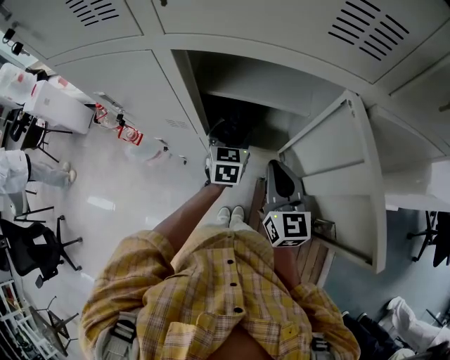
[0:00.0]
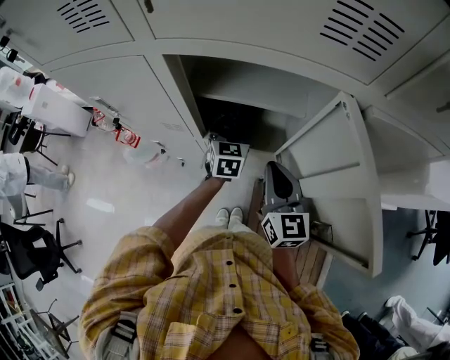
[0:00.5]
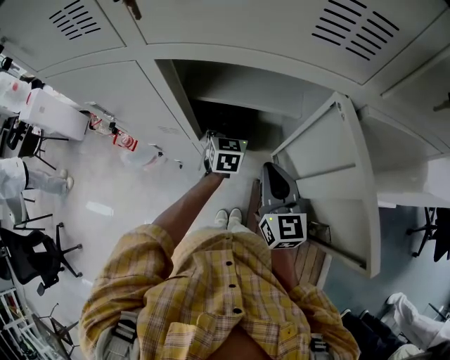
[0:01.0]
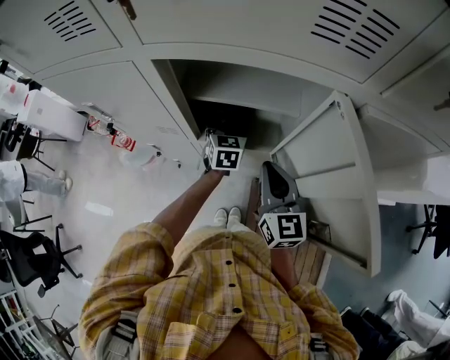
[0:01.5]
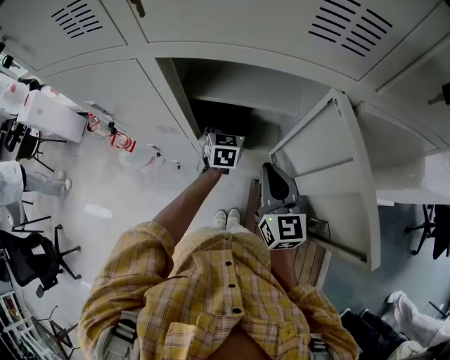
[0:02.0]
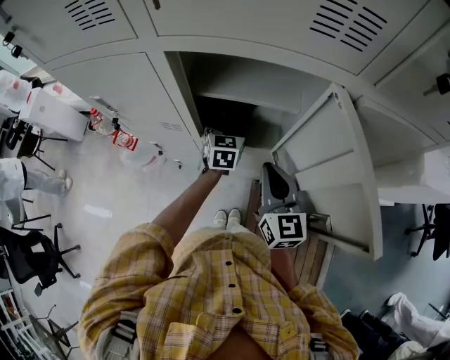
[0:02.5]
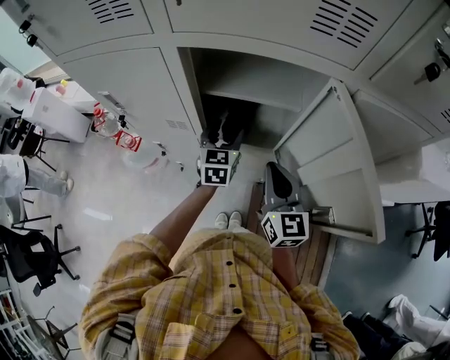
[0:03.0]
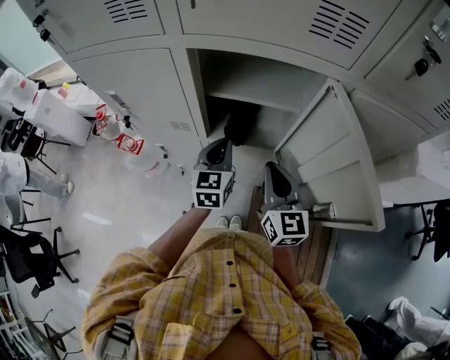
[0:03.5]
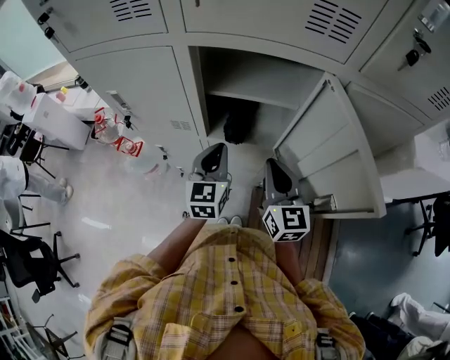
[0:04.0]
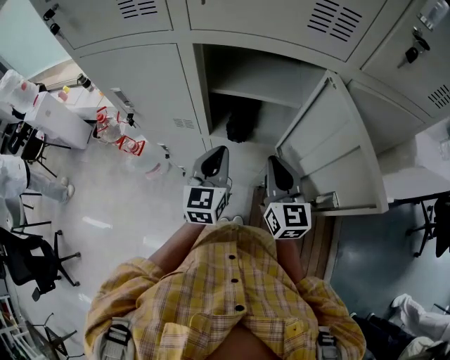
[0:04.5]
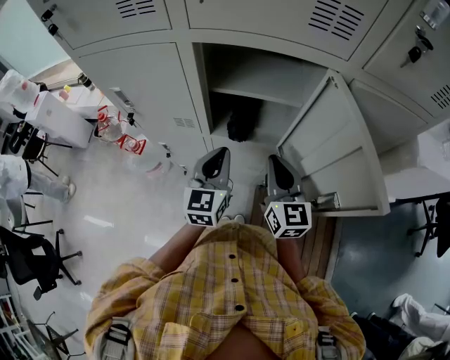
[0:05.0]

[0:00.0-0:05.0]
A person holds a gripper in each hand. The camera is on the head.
0:02.5 to 0:05.0: The left gripper shifts some 20 cm backward and upward, and closes its fingers.

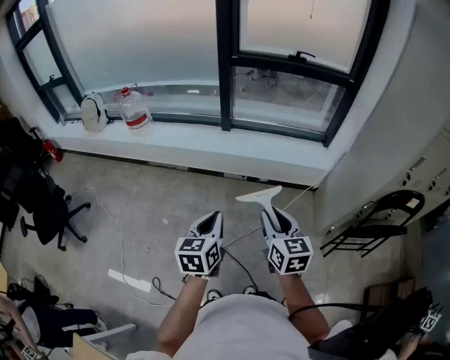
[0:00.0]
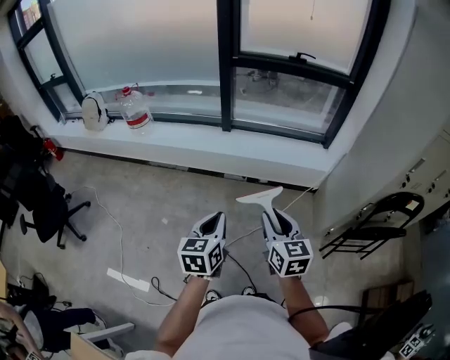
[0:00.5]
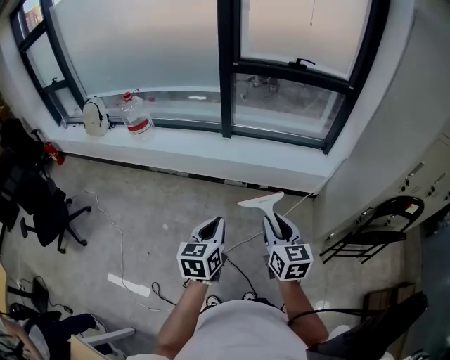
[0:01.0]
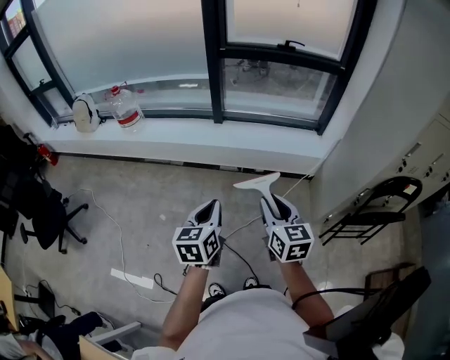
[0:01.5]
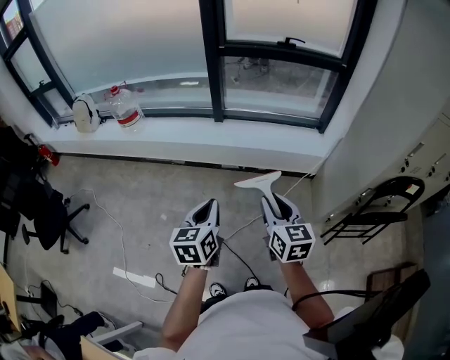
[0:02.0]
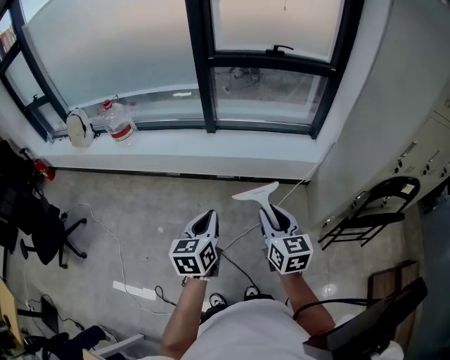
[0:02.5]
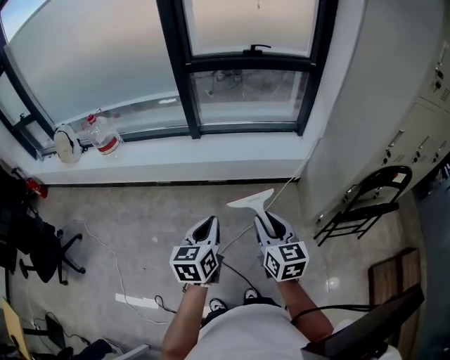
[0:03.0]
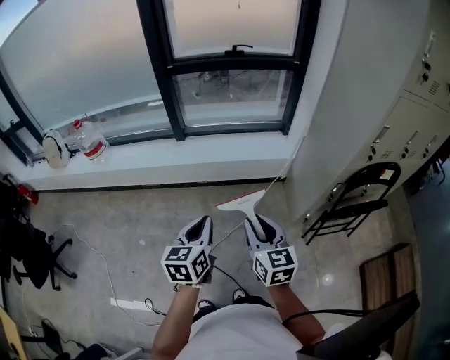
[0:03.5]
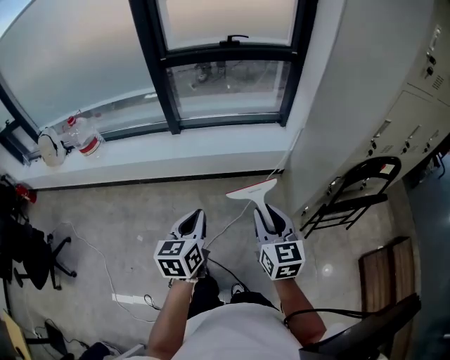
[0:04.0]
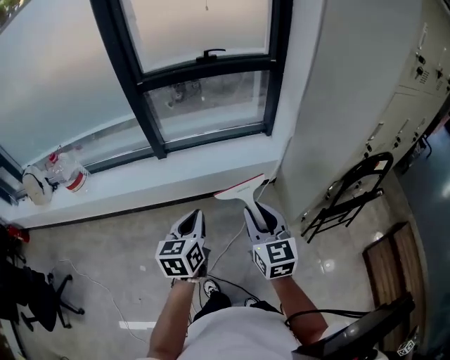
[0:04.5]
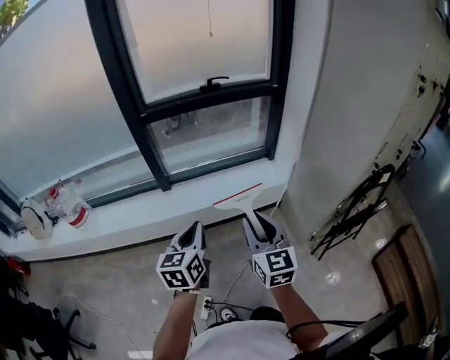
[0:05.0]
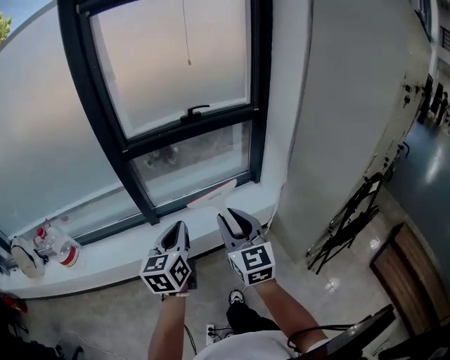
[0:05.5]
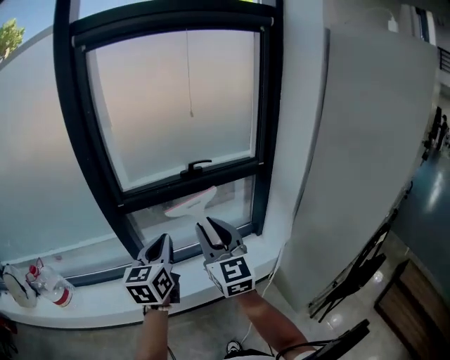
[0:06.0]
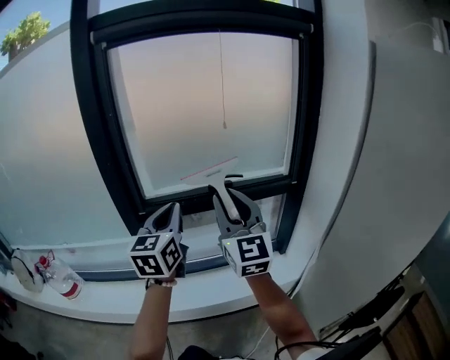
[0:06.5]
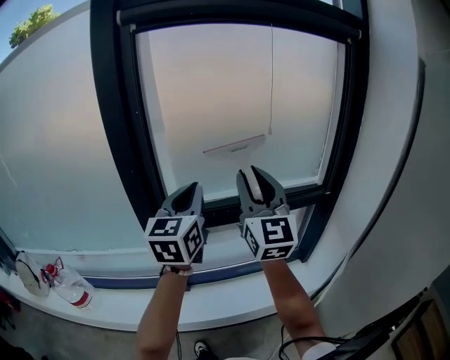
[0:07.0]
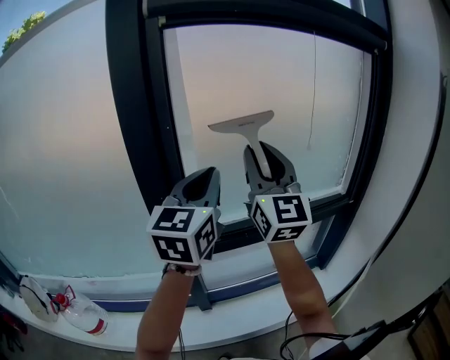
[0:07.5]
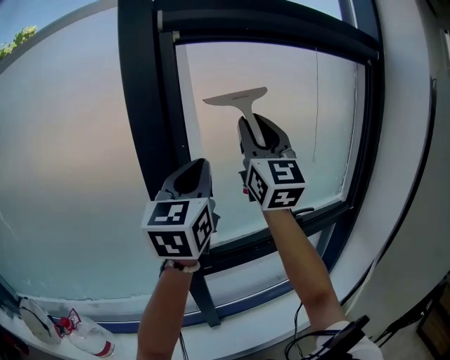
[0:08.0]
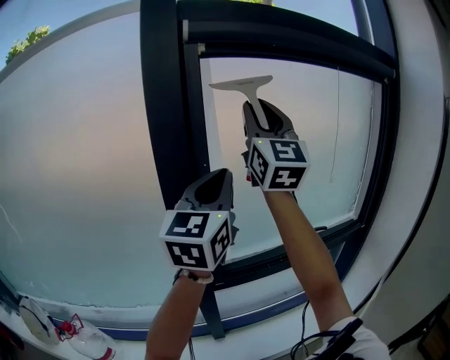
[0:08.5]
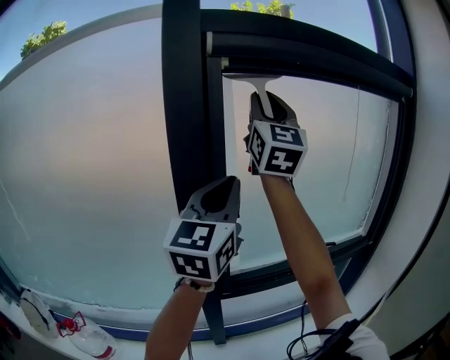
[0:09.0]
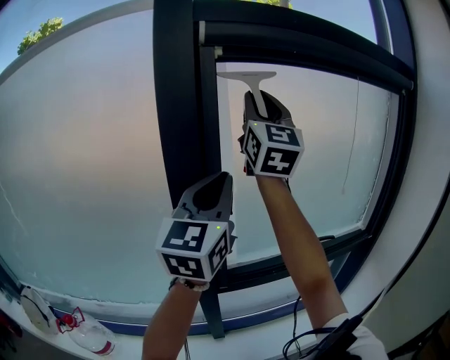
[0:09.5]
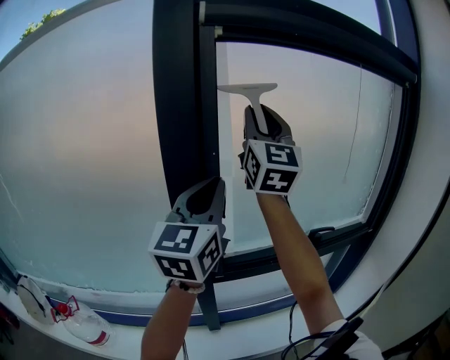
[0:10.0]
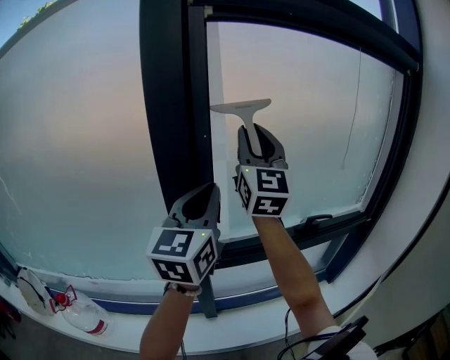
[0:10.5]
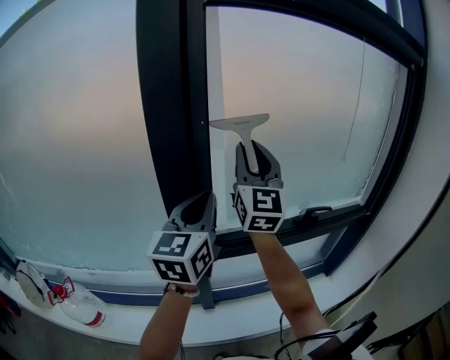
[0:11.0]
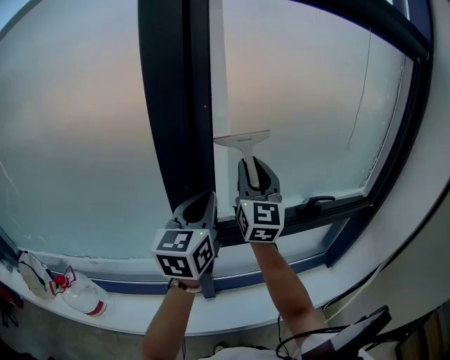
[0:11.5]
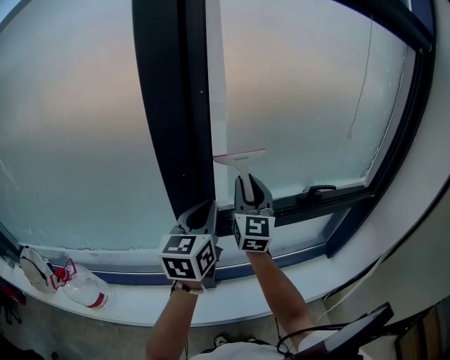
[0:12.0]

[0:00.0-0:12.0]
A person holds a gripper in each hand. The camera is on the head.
0:00.0 to 0:02.0: The grippers stay close to where they were, moving slightly.
0:02.0 to 0:04.0: Both grippers move to the right, roughly 15 cm.
0:04.0 to 0:06.0: The two grippers travel together, forward, roughly 50 cm. The grippers both shift upward by about 20 cm. The right gripper swivels some 30 degrees. Meanwhile the left gripper swivels approximately 20 degrees.
0:06.0 to 0:08.0: The two grippers go roughly 50 cm forward, upward and to the left. The left gripper swivels about 30 degrees, while the right gripper swivels approximately 30 degrees.
0:08.0 to 0:10.0: The right gripper is displaced forward and to the left by some 10 cm, and moves about 15 cm upward and comes back.
0:10.0 to 0:12.0: The left gripper heads downward, covering some 20 cm, and turns by approximately 20 degrees. The right gripper goes about 35 cm downward, and turns by some 20 degrees.

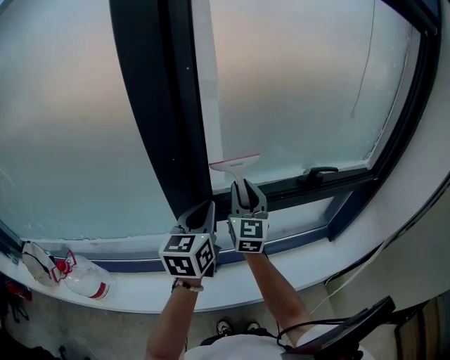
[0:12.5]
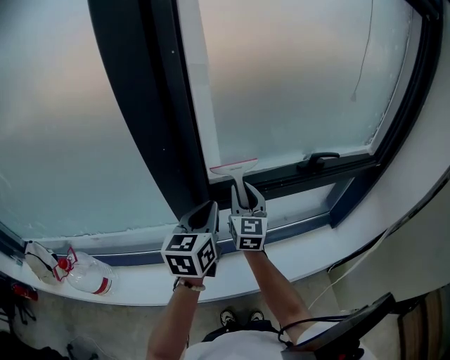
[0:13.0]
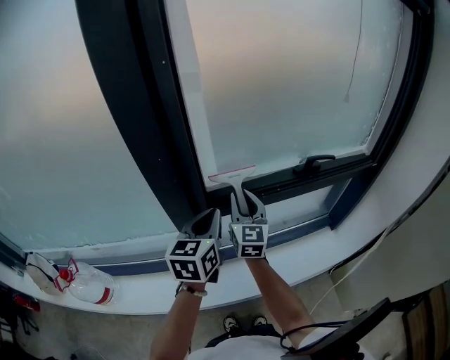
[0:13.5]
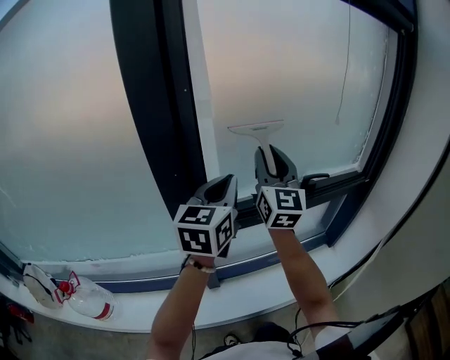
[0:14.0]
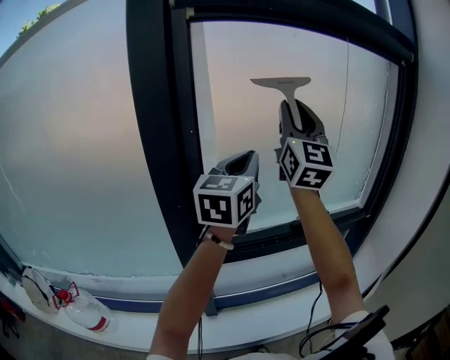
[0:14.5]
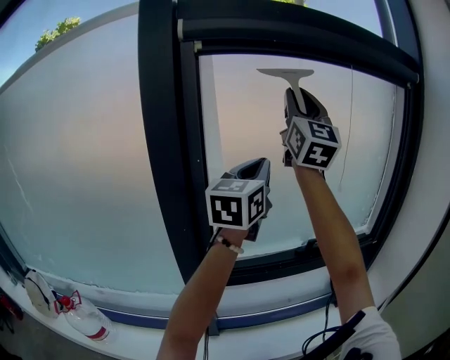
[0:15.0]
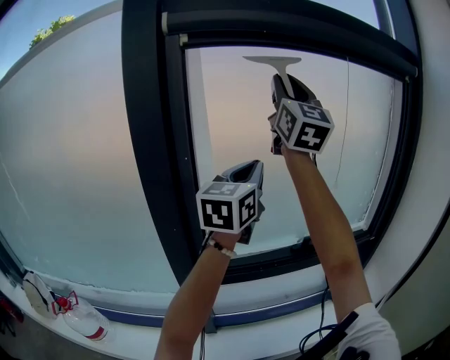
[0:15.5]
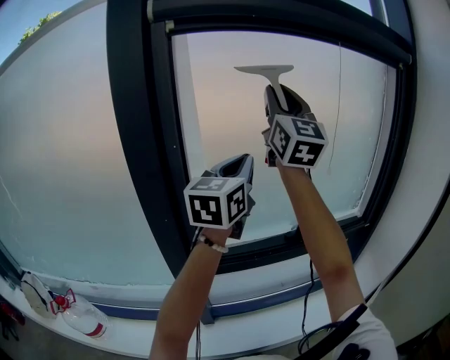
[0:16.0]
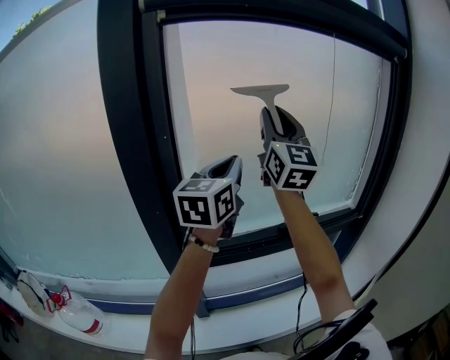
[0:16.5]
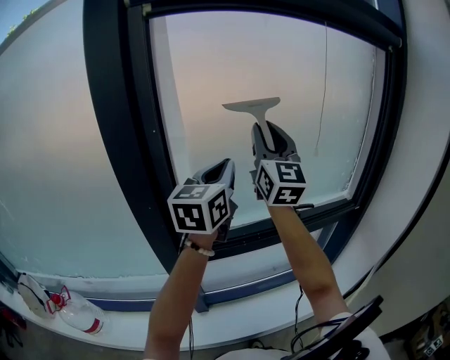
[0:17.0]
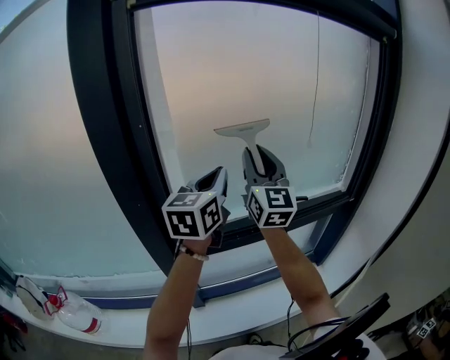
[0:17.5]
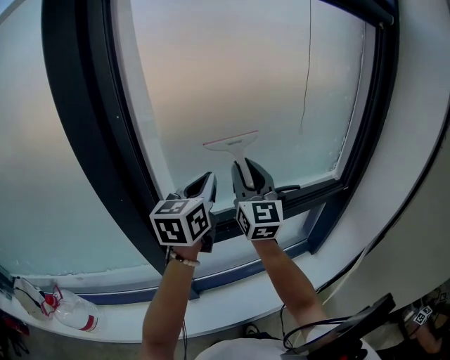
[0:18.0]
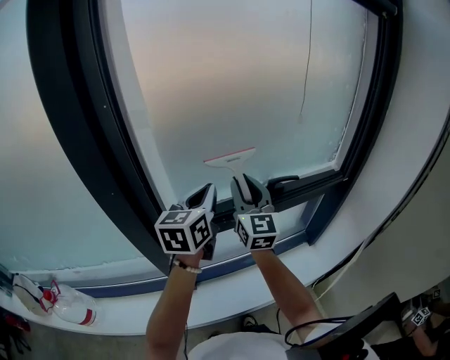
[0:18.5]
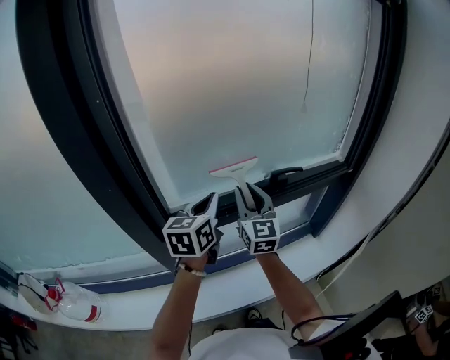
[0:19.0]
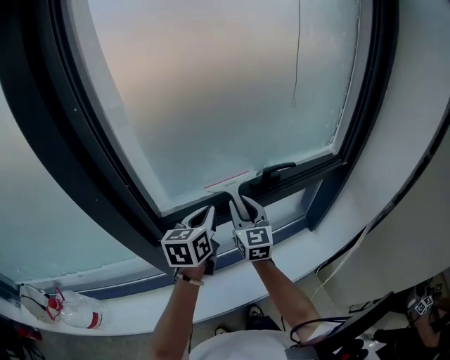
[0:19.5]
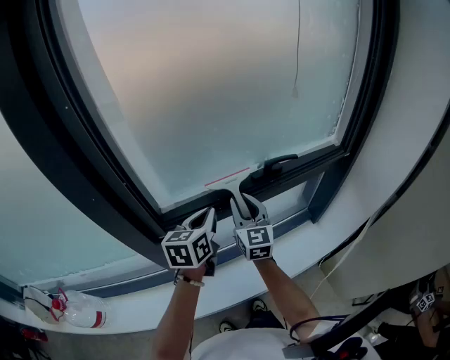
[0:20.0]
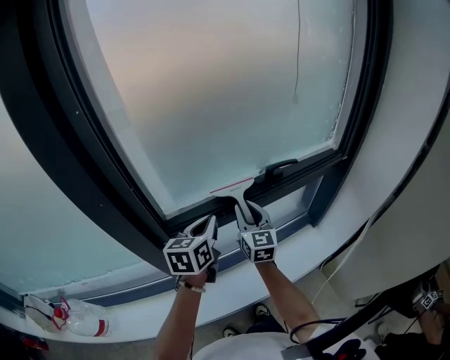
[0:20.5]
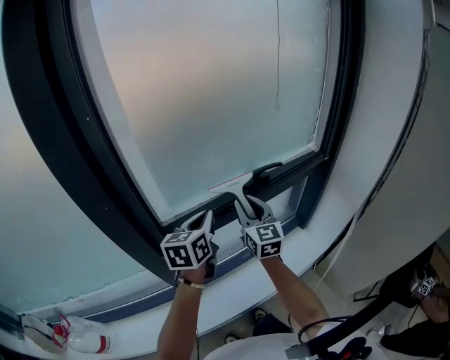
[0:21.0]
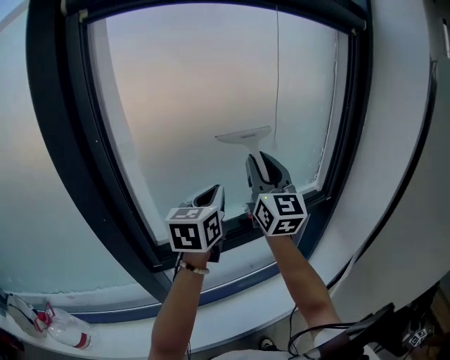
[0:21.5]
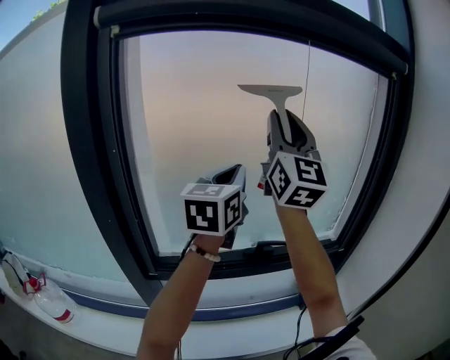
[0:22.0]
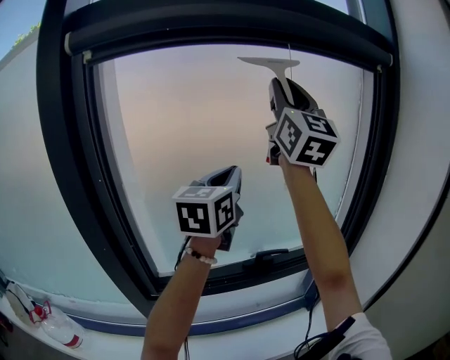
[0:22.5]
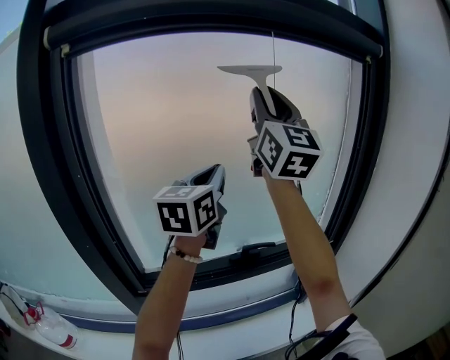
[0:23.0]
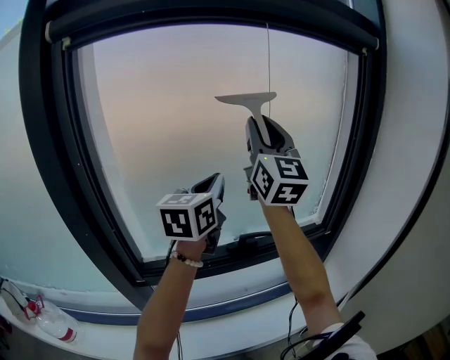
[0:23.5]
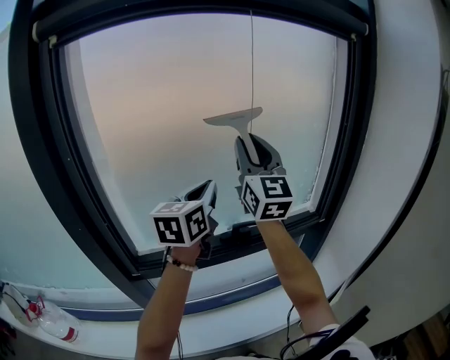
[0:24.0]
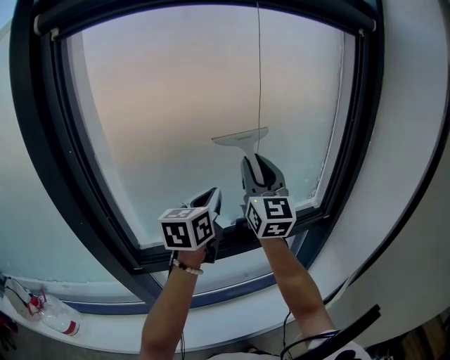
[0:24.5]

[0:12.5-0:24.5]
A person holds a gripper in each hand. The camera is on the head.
0:12.5 to 0:14.5: The left gripper travels upward and to the right by roughly 25 cm, and swivels roughly 20 degrees; the right gripper goes roughly 40 cm upward, and rotates approximately 30 degrees.
0:14.5 to 0:16.5: The right gripper moves about 10 cm upward and comes back.
0:16.5 to 0:18.5: The left gripper moves downward, roughly 20 cm. The right gripper heads downward, covering approximately 30 cm, and turns by about 20 degrees.
0:18.5 to 0:20.5: The two grippers go approximately 15 cm downward.
0:20.5 to 0:22.5: The right gripper goes roughly 60 cm upward, and points its fingers about 40 degrees further upward; the left gripper moves upward, about 40 cm, and rotates some 30 degrees.
0:22.5 to 0:24.5: The right gripper moves downward, approximately 30 cm, while the left gripper is displaced downward by about 15 cm.
